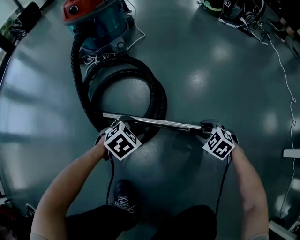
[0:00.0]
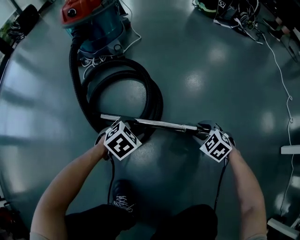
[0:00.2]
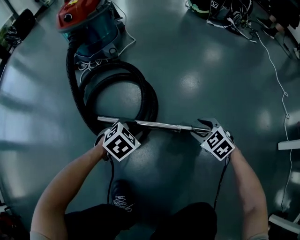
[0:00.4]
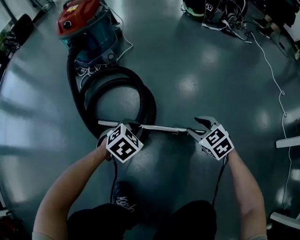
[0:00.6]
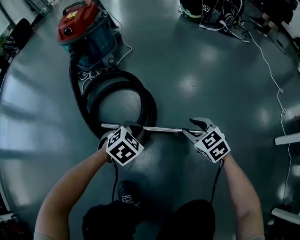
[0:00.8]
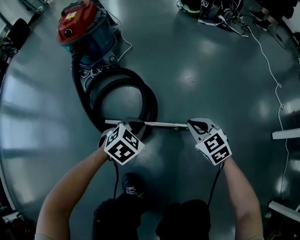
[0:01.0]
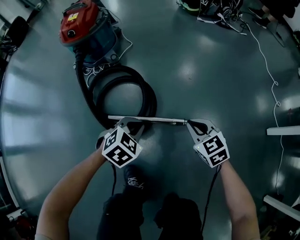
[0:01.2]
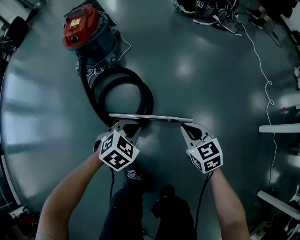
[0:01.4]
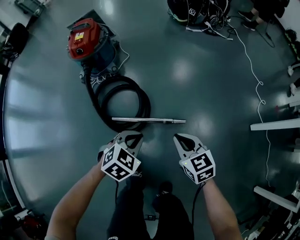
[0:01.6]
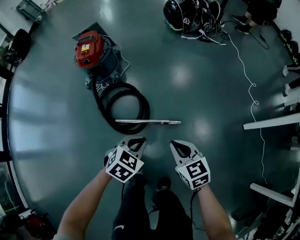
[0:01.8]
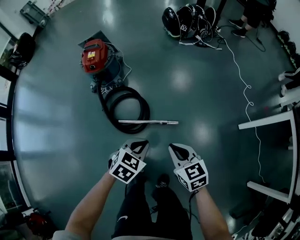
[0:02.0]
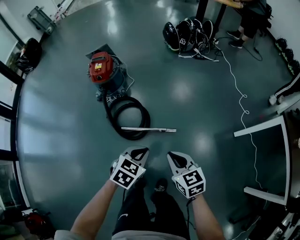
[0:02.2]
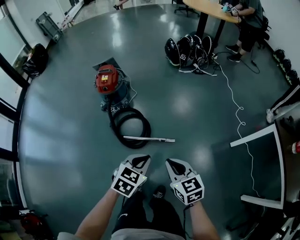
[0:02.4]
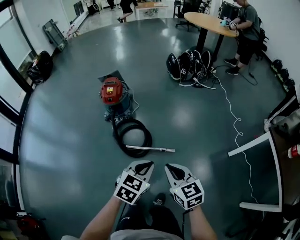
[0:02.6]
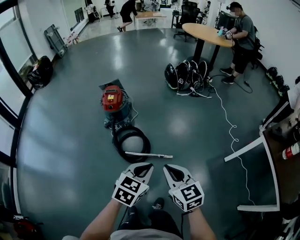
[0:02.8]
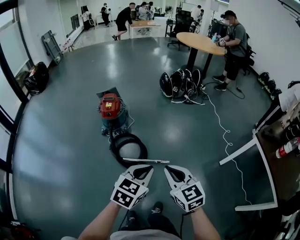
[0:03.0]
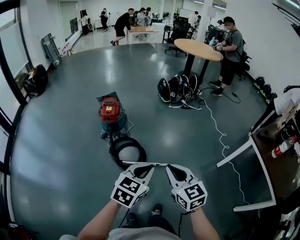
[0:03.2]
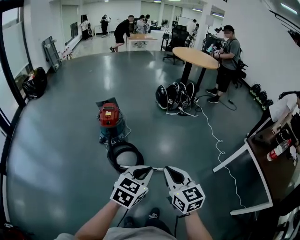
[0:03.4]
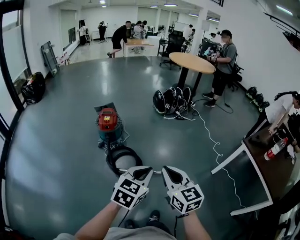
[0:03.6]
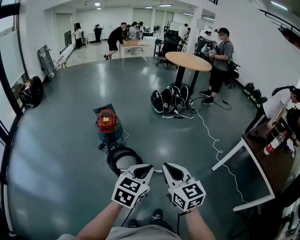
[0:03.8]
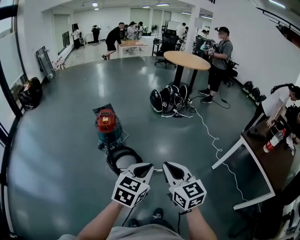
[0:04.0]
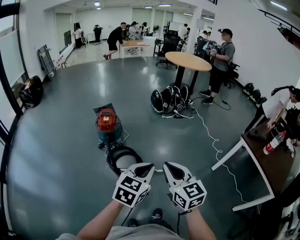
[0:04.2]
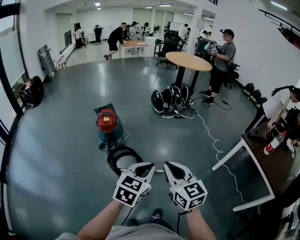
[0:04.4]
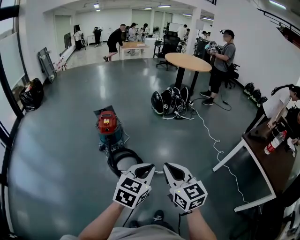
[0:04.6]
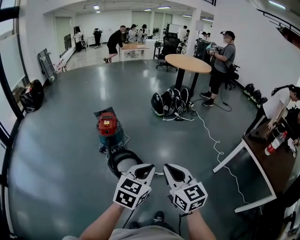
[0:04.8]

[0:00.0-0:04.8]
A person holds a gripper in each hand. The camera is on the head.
0:00.0 to 0:01.6: Both grippers move upward, some 40 cm. The left gripper closes. Meanwhile the right gripper turns by approximately 50 degrees, and closes up.
0:01.6 to 0:03.2: The two grippers go about 50 cm upward. The right gripper turns by about 20 degrees. The left gripper changes its angle by some 30 degrees.
0:03.2 to 0:04.8: Both grippers travel together upward, roughly 5 cm.

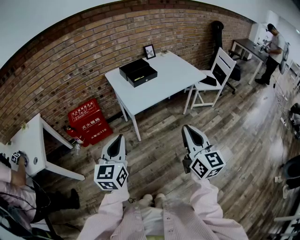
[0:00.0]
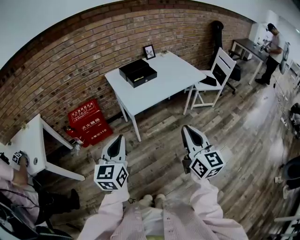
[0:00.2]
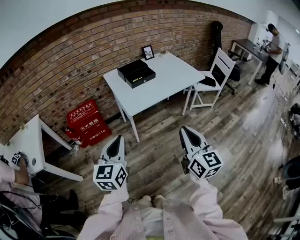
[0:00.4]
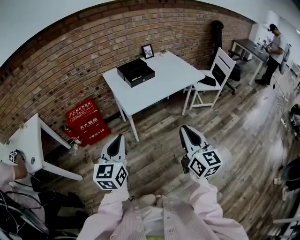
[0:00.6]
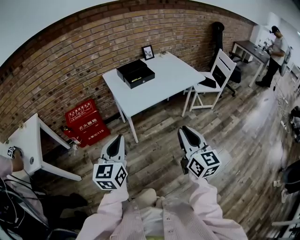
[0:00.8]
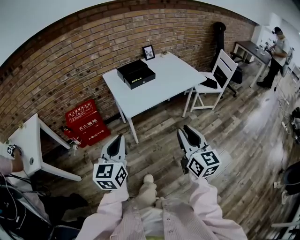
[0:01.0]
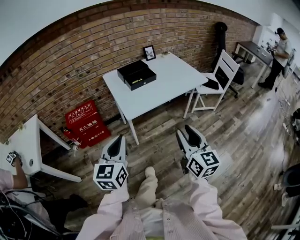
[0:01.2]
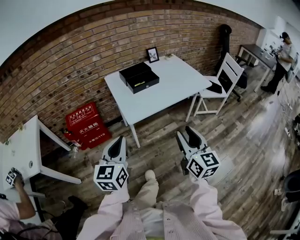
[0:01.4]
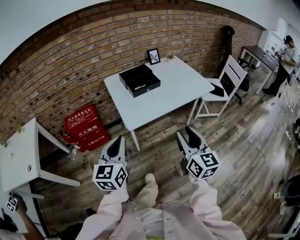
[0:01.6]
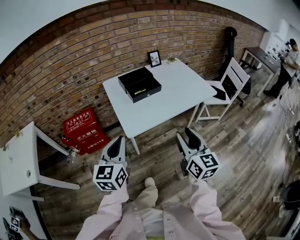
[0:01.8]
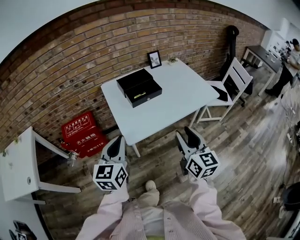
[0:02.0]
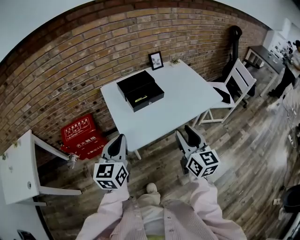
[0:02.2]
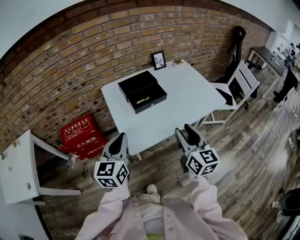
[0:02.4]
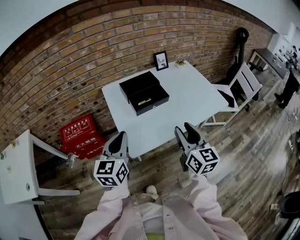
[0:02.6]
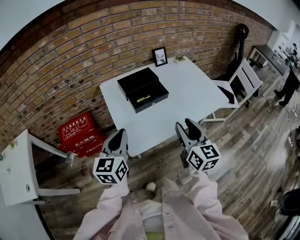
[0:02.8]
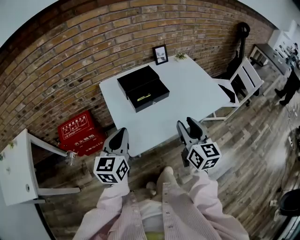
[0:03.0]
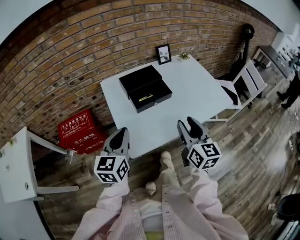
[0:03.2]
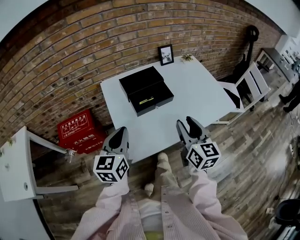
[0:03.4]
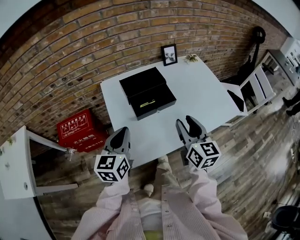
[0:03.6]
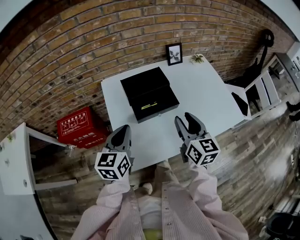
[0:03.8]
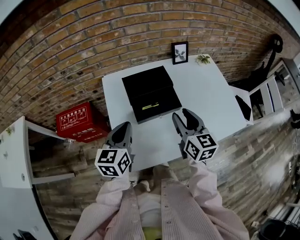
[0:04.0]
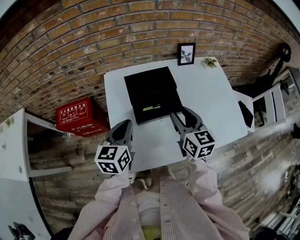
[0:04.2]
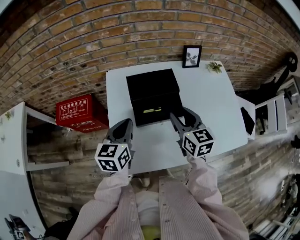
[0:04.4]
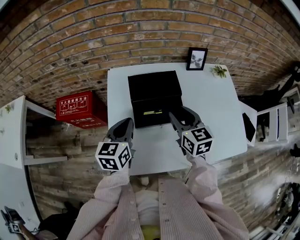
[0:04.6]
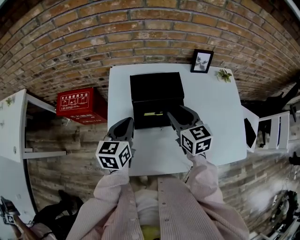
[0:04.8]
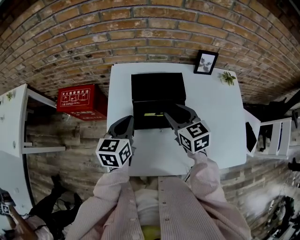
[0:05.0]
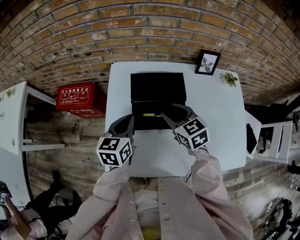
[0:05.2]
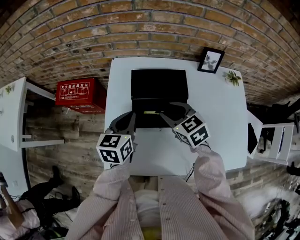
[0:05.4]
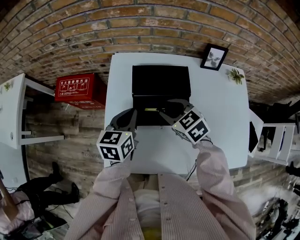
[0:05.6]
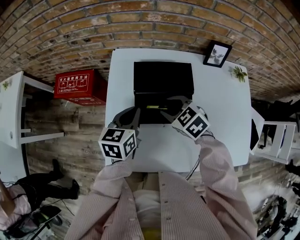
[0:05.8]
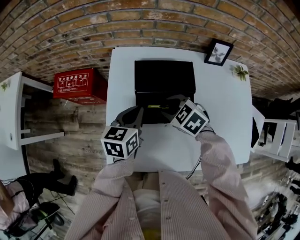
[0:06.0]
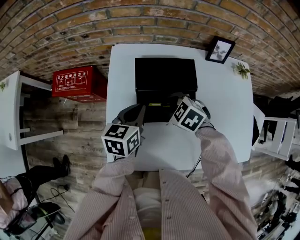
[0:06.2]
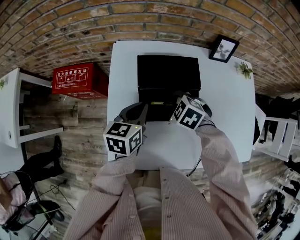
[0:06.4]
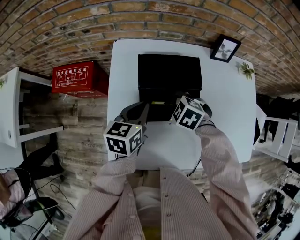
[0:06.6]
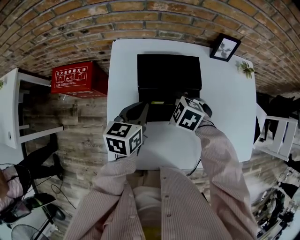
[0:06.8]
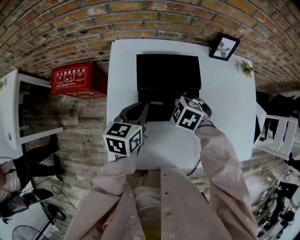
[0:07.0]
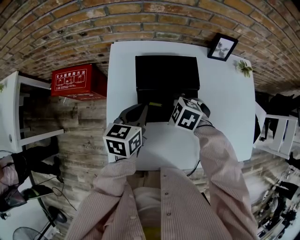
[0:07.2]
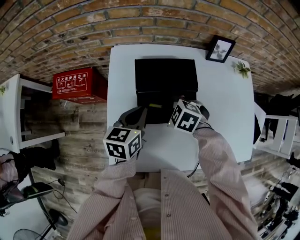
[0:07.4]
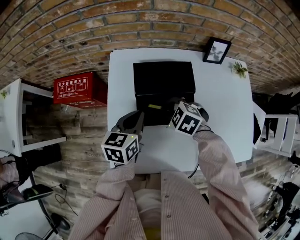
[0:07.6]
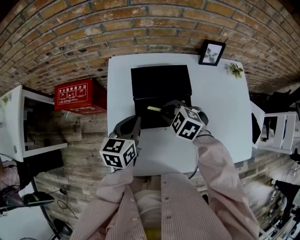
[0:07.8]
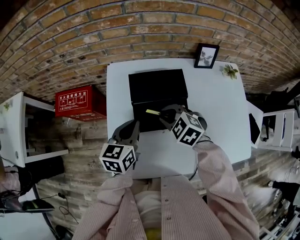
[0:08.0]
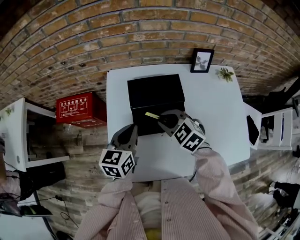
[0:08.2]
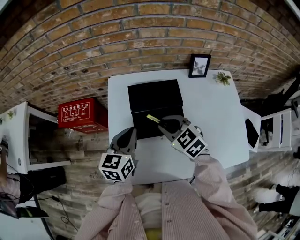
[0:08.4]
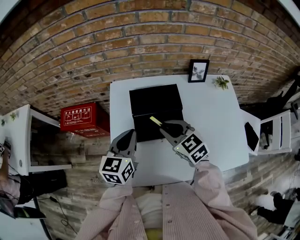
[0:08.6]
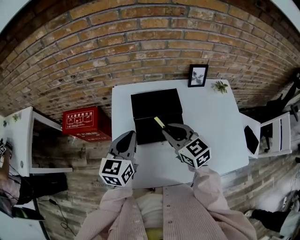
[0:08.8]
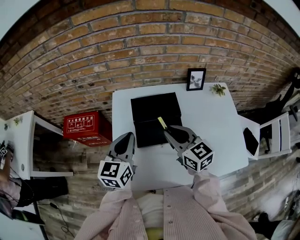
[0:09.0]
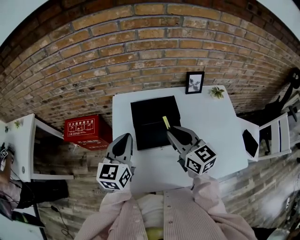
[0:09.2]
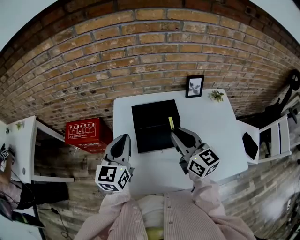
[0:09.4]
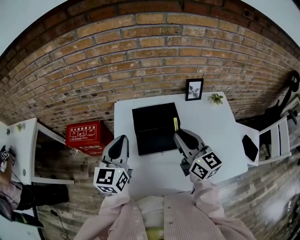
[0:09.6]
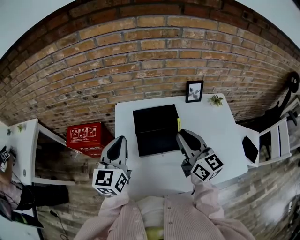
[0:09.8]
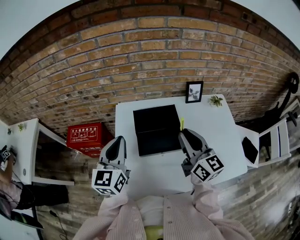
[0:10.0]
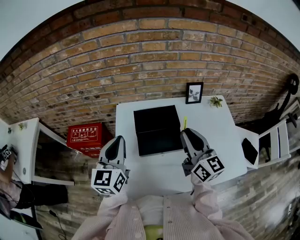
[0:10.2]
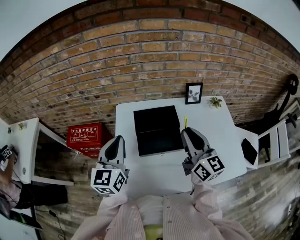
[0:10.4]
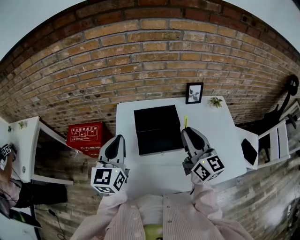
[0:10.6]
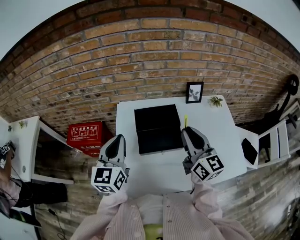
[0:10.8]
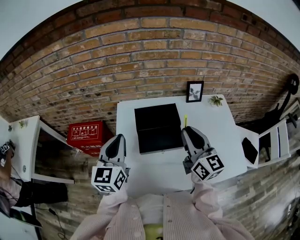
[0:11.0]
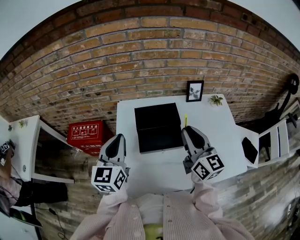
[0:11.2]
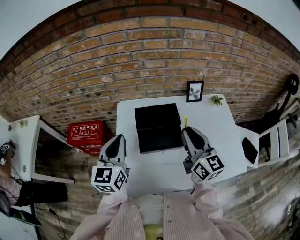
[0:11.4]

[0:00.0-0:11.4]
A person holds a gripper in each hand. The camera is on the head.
0:00.0 to 0:01.4: Both grippers move forward, approximately 10 cm. The right gripper opens.
0:01.4 to 0:02.8: Both grippers move forward, approximately 30 cm.
0:02.8 to 0:04.2: Both grippers move forward, some 20 cm. The right gripper changes its angle by some 20 degrees.
0:04.2 to 0:05.6: The right gripper ends up some 15 cm from where it was, and rotates approximately 50 degrees. Meanwhile the left gripper changes place by roughly 10 cm.
0:05.6 to 0:07.2: The right gripper shifts some 5 cm downward, turns by roughly 30 degrees, and closes up.
0:07.2 to 0:08.6: The left gripper goes about 10 cm upward; the right gripper shifts approximately 15 cm upward, and points its fingers about 40 degrees further upward.
0:08.6 to 0:10.0: The right gripper goes roughly 15 cm upward and to the right, and points its fingers about 30 degrees further upward, while the left gripper goes approximately 10 cm upward.
0:10.0 to 0:11.4: There are only small adjustments of the grippers.

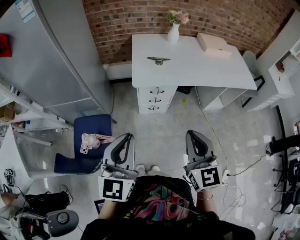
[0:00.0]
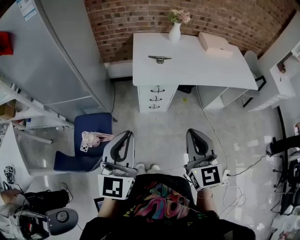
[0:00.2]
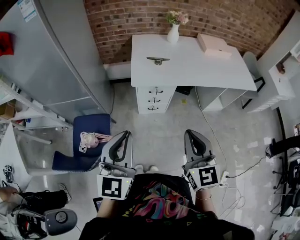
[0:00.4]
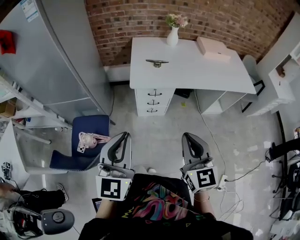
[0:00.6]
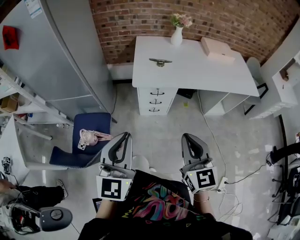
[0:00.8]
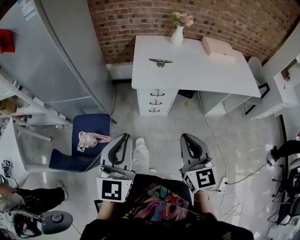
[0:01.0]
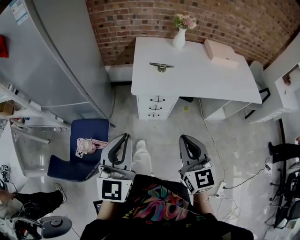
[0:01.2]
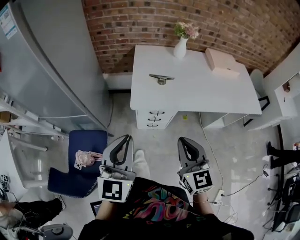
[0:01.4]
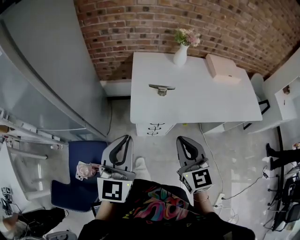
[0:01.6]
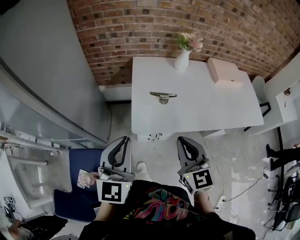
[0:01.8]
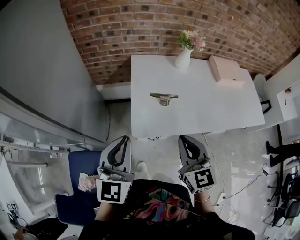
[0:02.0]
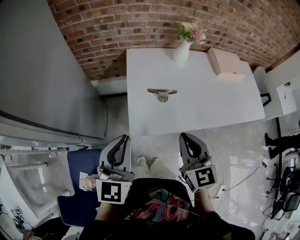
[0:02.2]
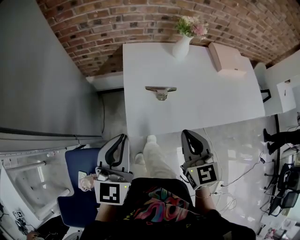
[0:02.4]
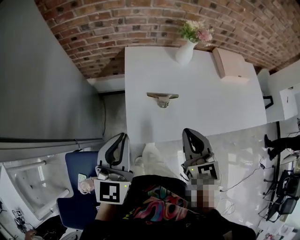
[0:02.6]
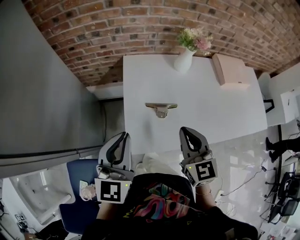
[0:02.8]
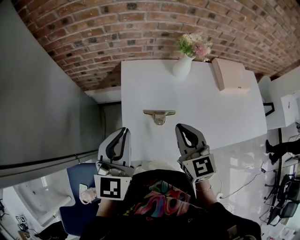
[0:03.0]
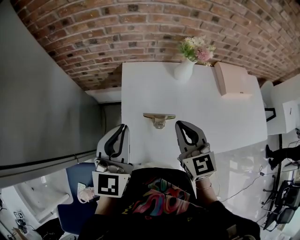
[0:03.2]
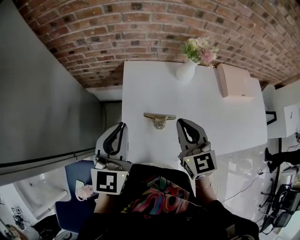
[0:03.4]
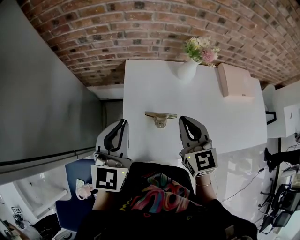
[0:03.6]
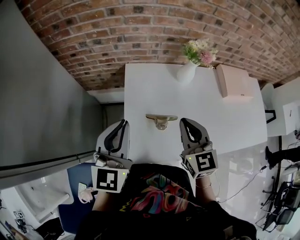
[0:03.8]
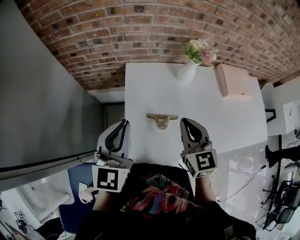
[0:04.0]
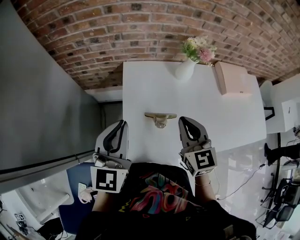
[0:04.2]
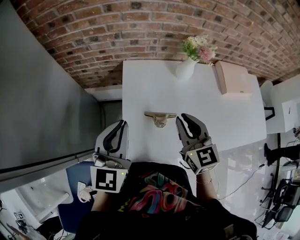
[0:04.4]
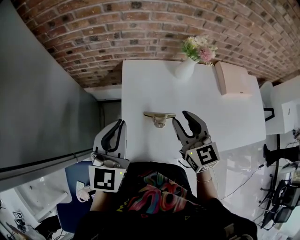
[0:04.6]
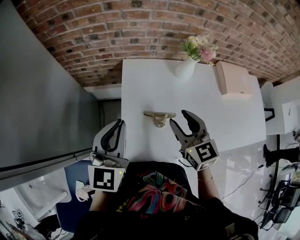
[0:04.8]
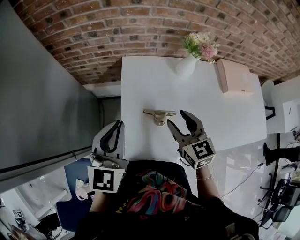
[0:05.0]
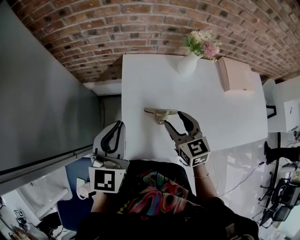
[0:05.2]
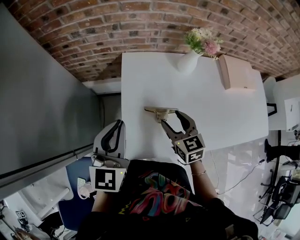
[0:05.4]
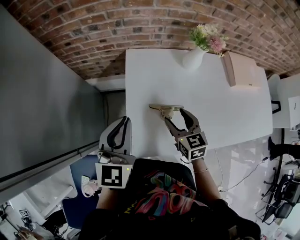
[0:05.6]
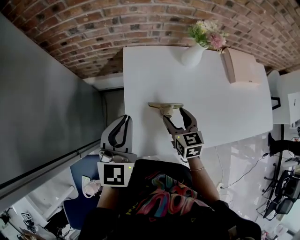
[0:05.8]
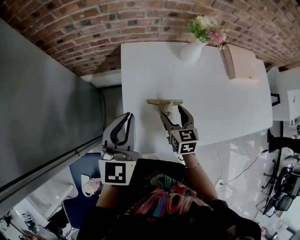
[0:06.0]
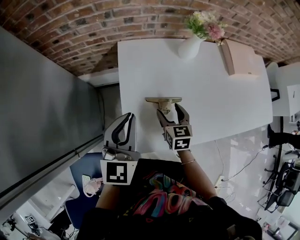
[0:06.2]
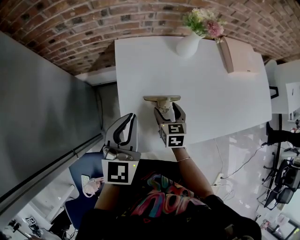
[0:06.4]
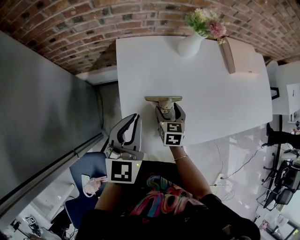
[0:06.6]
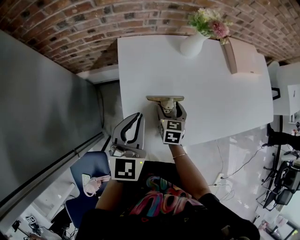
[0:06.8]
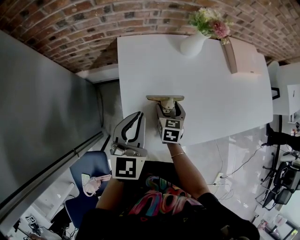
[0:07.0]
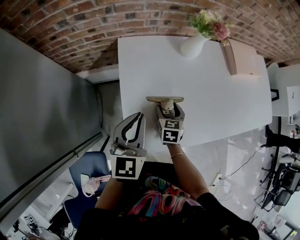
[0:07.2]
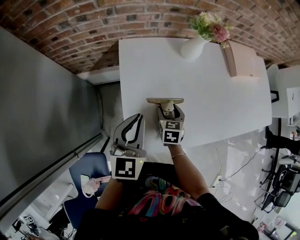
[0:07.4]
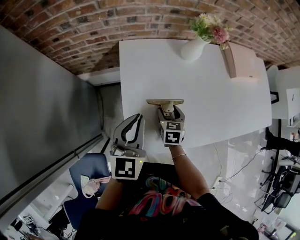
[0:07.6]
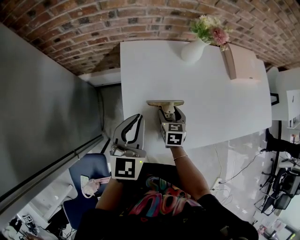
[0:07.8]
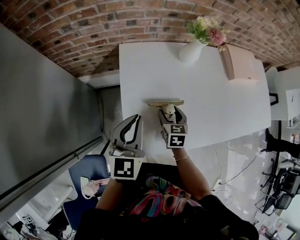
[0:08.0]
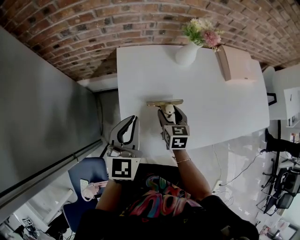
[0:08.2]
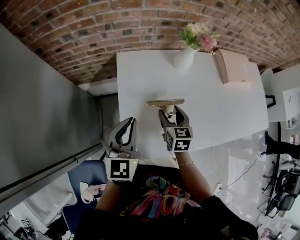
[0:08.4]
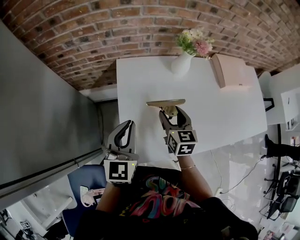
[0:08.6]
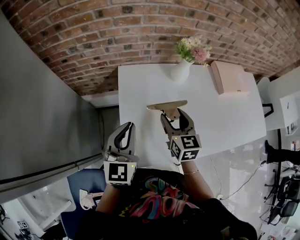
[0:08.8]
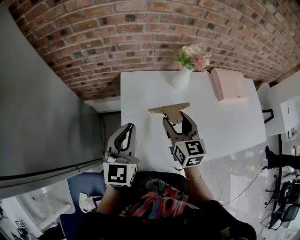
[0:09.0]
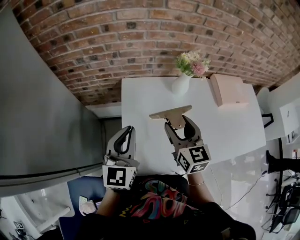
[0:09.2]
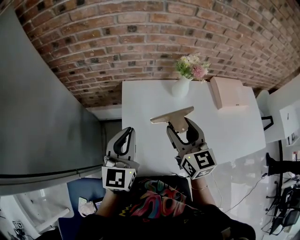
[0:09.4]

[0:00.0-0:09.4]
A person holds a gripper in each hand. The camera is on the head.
0:00.0 to 0:01.6: Both grippers move forward, approximately 25 cm.
0:01.6 to 0:03.2: Both grippers travel together forward, some 35 cm.
0:03.2 to 0:04.8: The right gripper opens up.
0:04.8 to 0:06.2: The right gripper travels downward by some 20 cm, turns by approximately 30 degrees, and opens, while the left gripper is displaced downward by some 10 cm.
0:06.2 to 0:07.8: The right gripper shifts about 5 cm downward.
0:07.8 to 0:09.4: The left gripper shifts about 10 cm upward. The right gripper shifts some 30 cm upward, and points its fingers about 30 degrees further upward.
